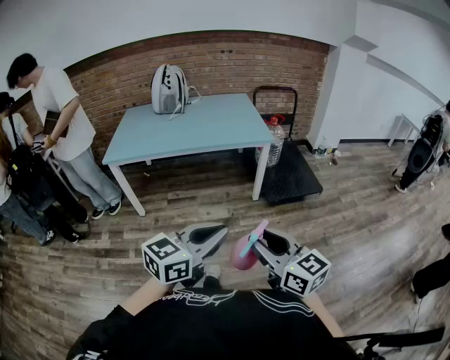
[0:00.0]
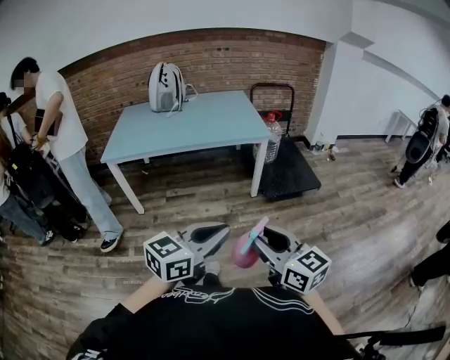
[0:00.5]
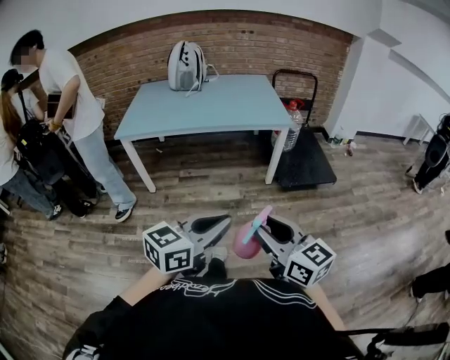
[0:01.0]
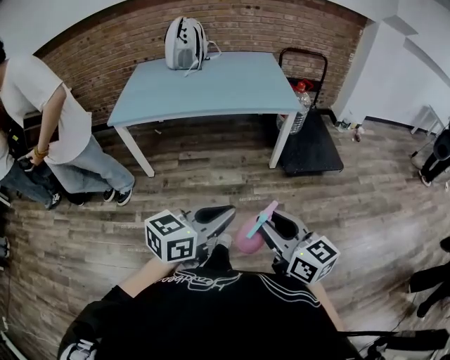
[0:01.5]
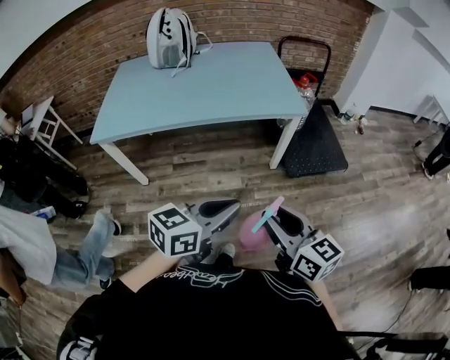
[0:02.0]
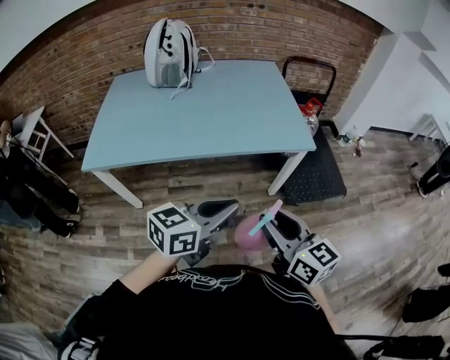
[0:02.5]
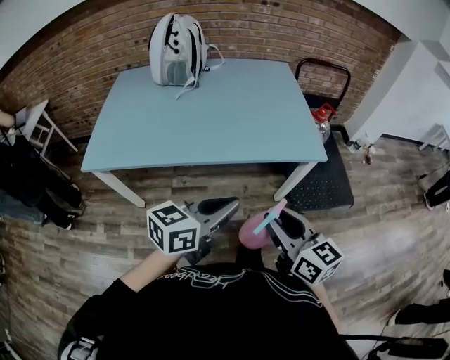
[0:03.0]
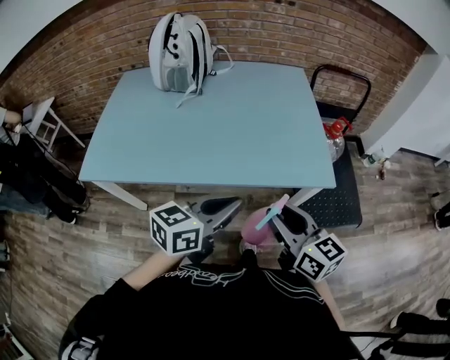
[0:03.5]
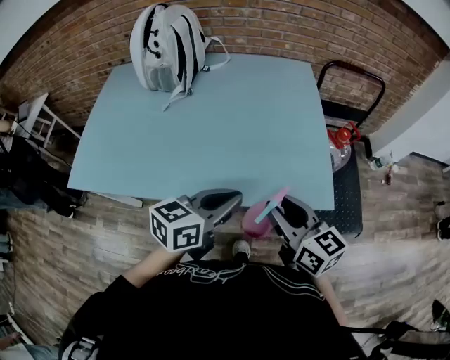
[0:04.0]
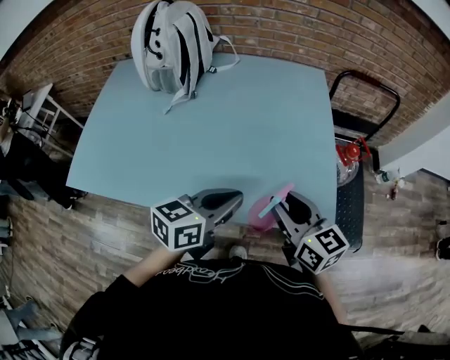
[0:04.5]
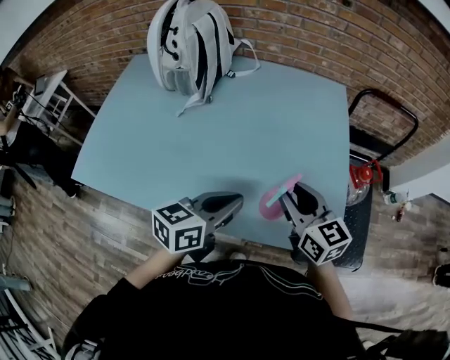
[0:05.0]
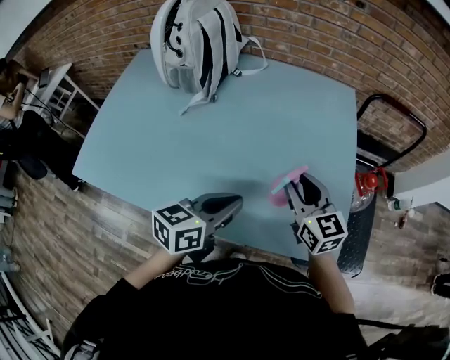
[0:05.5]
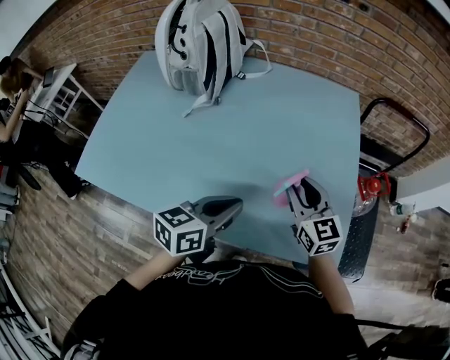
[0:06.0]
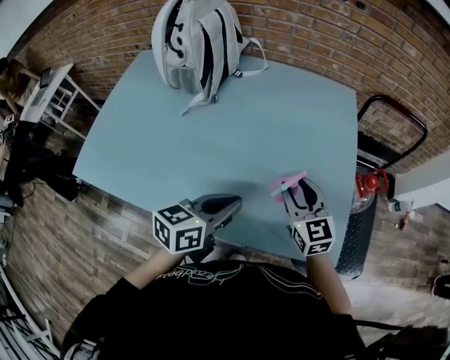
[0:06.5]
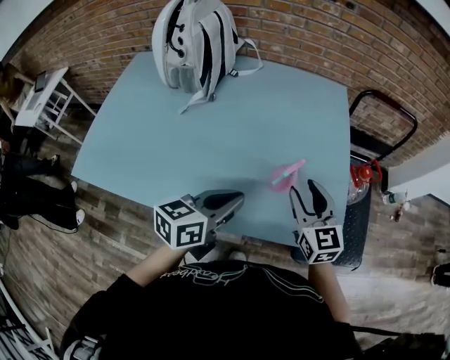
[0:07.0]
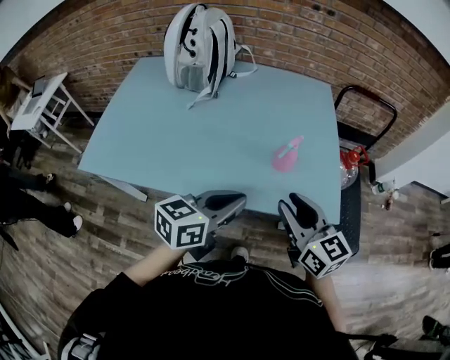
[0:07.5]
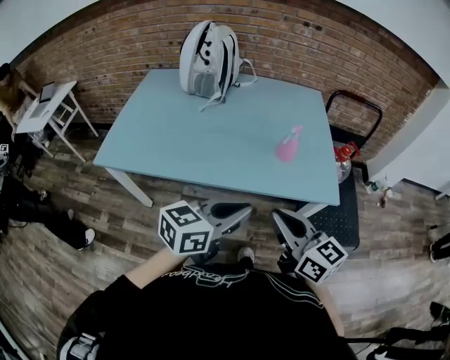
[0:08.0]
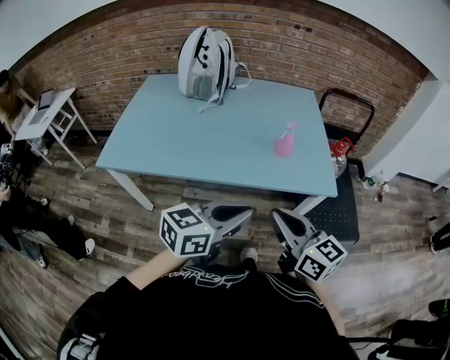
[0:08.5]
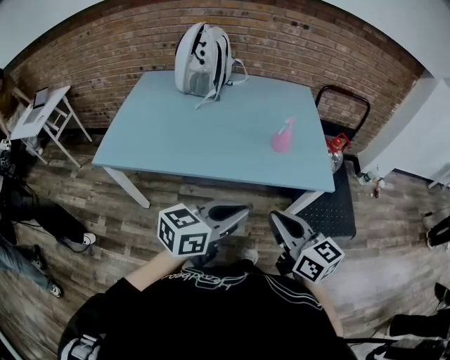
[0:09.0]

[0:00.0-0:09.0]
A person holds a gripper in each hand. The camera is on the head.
0:00.0 to 0:02.0: The grippers both shift forward by some 25 cm.
0:02.0 to 0:04.5: Both grippers are carried forward, about 60 cm.
0:04.5 to 0:07.0: The left gripper changes place by some 5 cm; the right gripper is displaced forward by about 10 cm, and swivels approximately 20 degrees.
0:07.0 to 0:09.0: The grippers both shift backward by some 40 cm. The right gripper rotates about 20 degrees, and closes up.

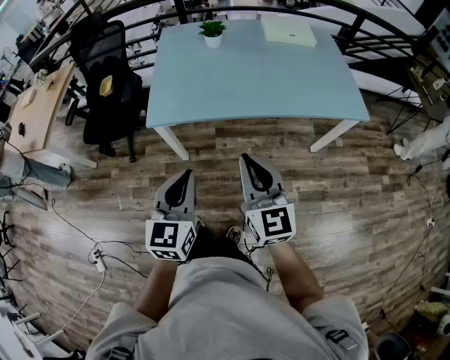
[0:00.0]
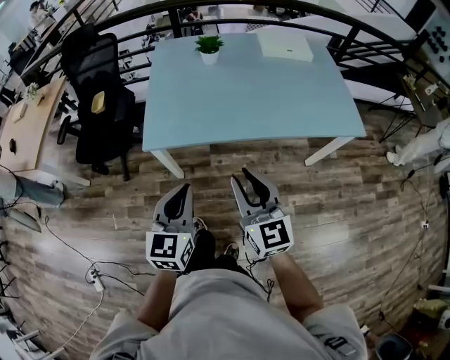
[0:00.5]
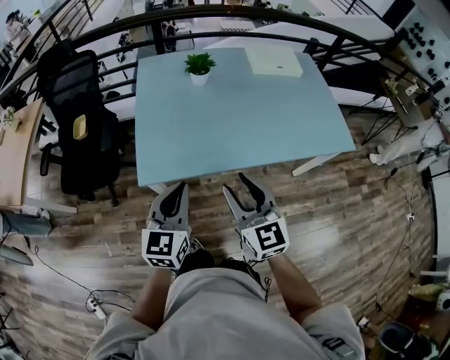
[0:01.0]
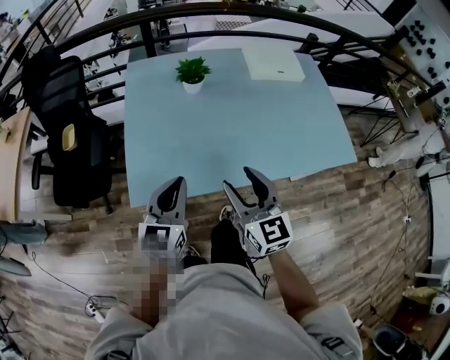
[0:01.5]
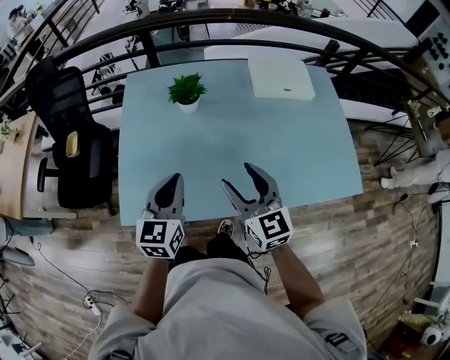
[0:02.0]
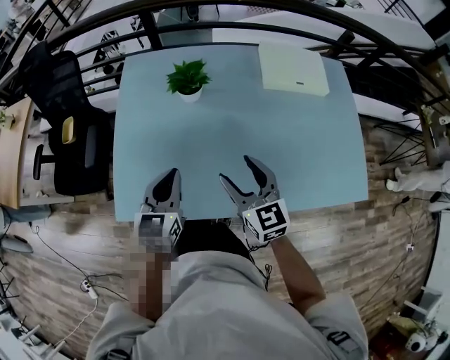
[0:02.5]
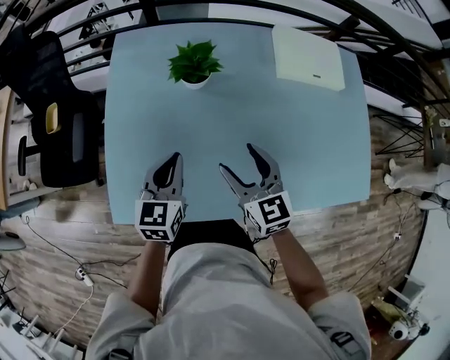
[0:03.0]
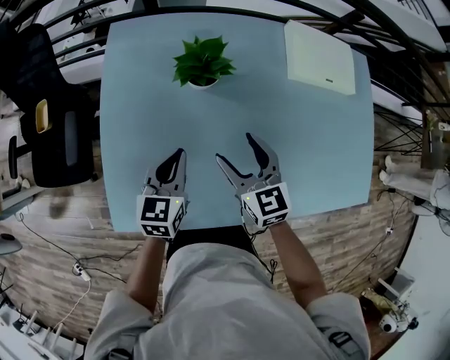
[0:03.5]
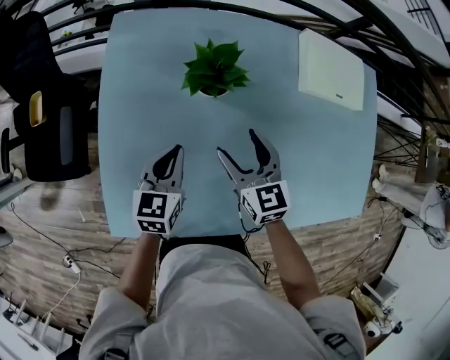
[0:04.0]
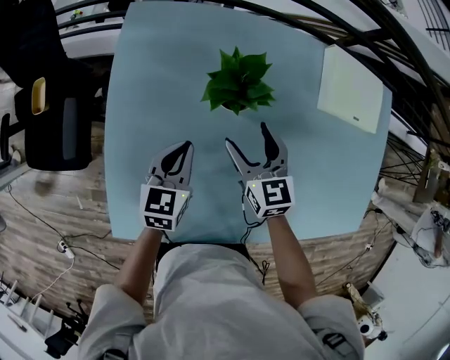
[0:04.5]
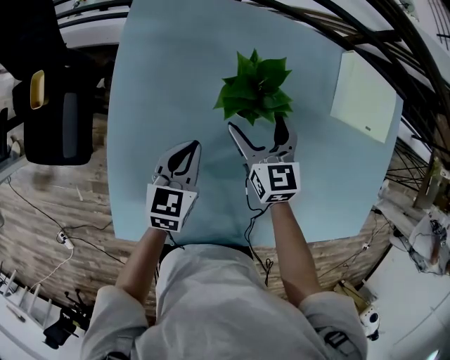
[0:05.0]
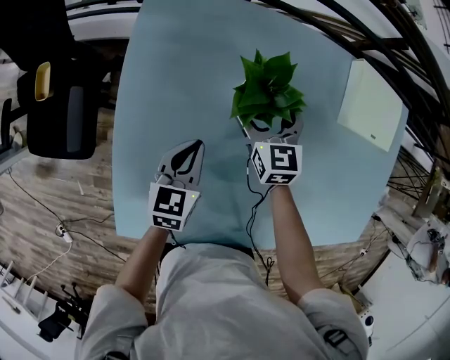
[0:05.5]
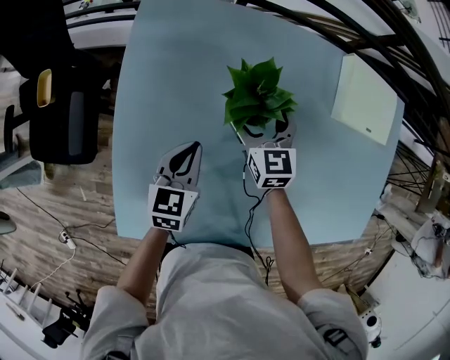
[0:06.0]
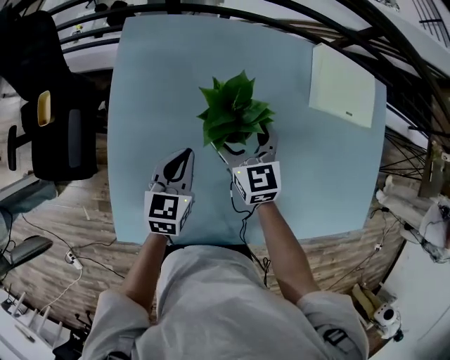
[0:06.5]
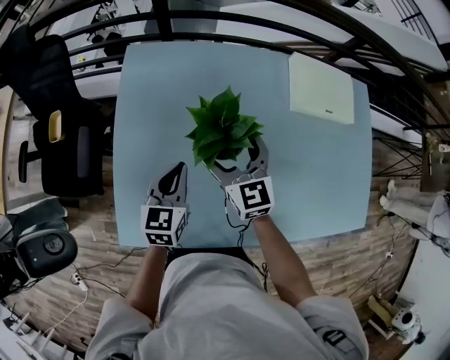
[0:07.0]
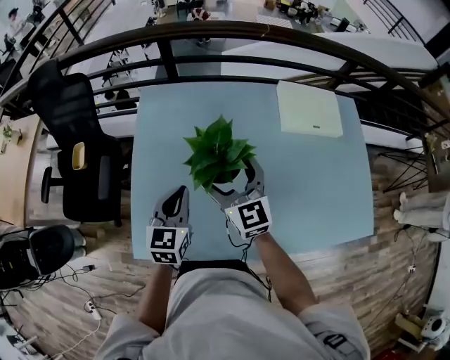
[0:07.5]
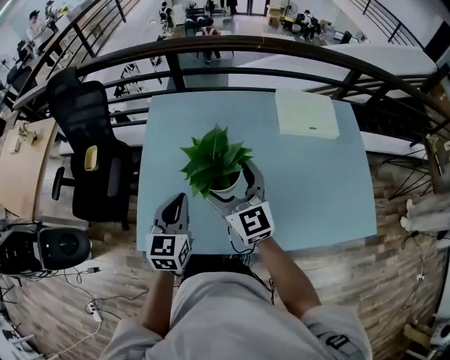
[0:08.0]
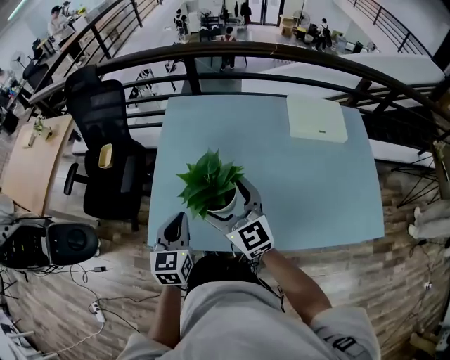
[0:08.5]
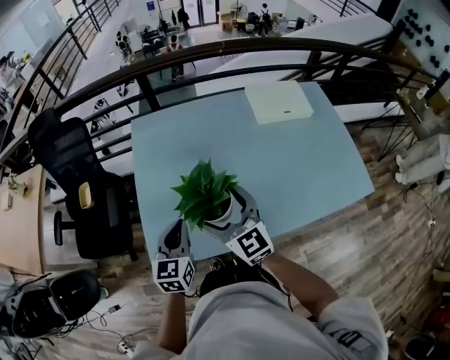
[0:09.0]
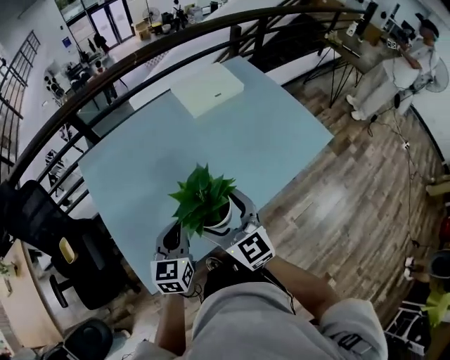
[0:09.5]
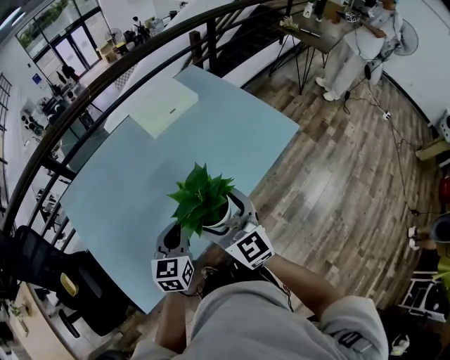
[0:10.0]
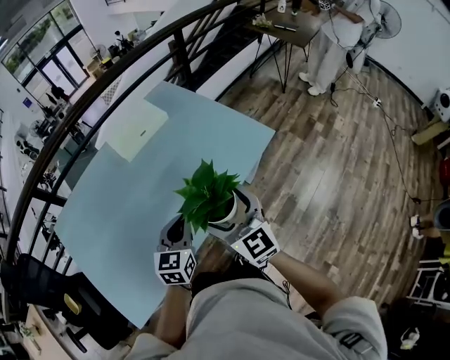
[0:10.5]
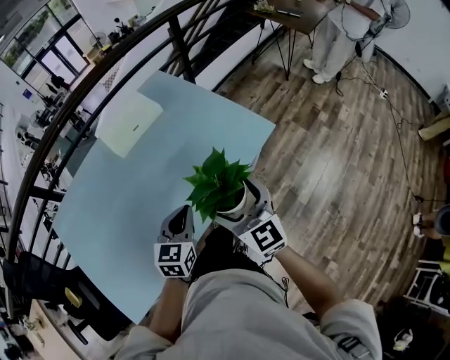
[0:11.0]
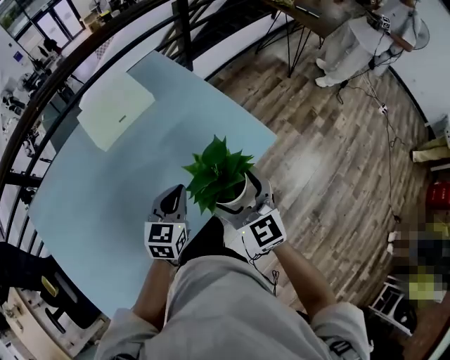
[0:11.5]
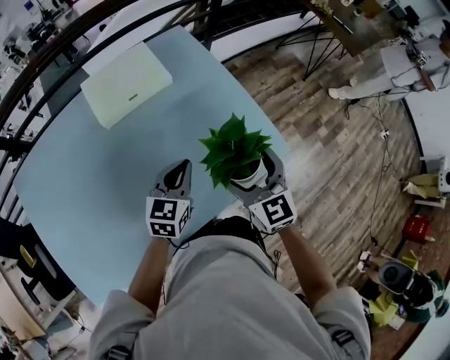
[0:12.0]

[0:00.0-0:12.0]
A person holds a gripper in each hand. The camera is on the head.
0:00.0 to 0:02.0: The grippers both shift forward by approximately 40 cm. The right gripper opens up.
0:02.0 to 0:04.0: Both grippers move forward and downward, roughly 25 cm.
0:04.0 to 0:06.0: The right gripper travels forward and downward by approximately 15 cm. Meanwhile the left gripper ends up about 5 cm from where it was.
0:06.0 to 0:08.0: The two grippers go about 30 cm upward and backward. The left gripper turns by roughly 20 degrees. The right gripper swivels roughly 30 degrees.
0:08.0 to 0:10.0: The right gripper shifts by approximately 25 cm, and changes its angle by about 40 degrees. Meanwhile the left gripper moves some 20 cm, and turns by approximately 40 degrees.
0:10.0 to 0:12.0: Both grippers travel together forward and to the right, some 35 cm.

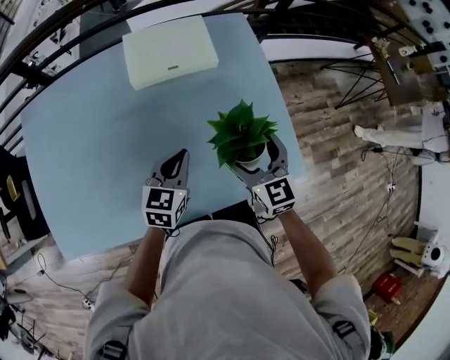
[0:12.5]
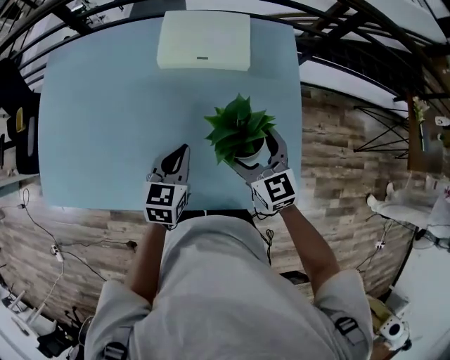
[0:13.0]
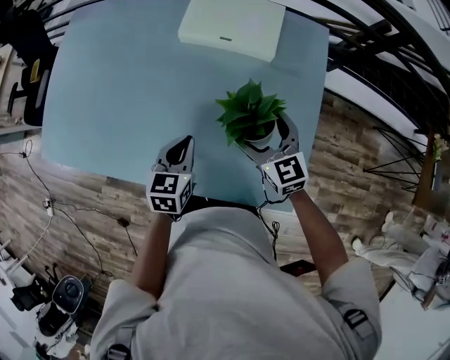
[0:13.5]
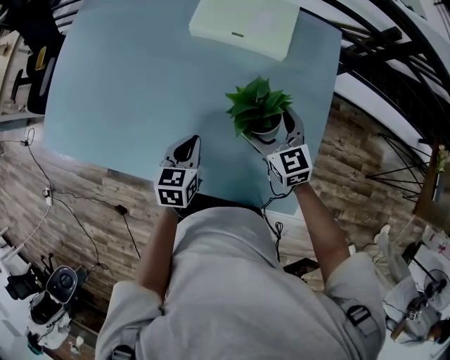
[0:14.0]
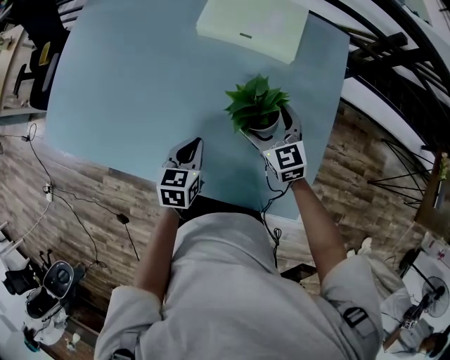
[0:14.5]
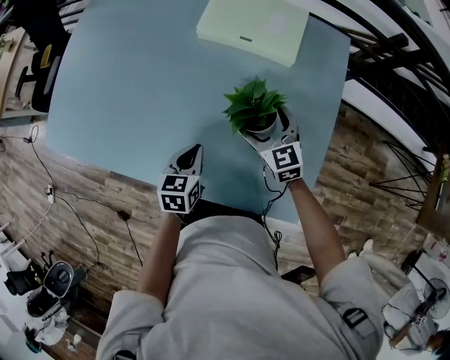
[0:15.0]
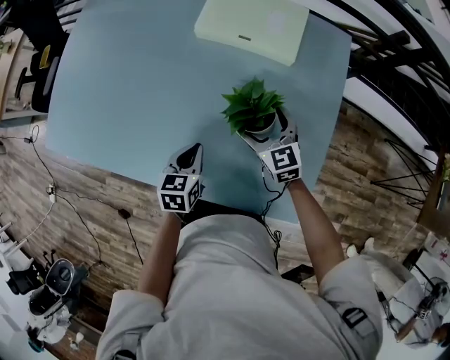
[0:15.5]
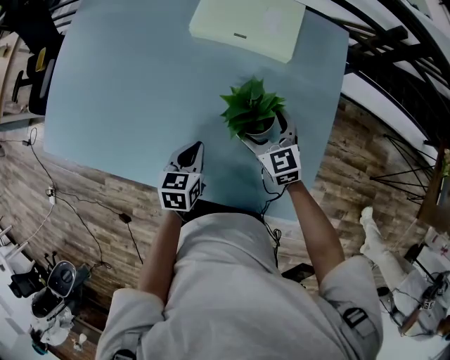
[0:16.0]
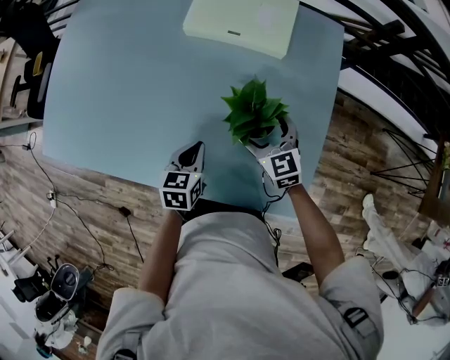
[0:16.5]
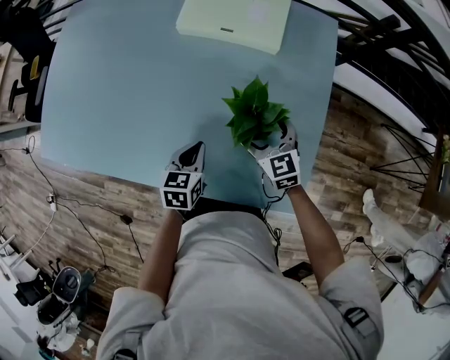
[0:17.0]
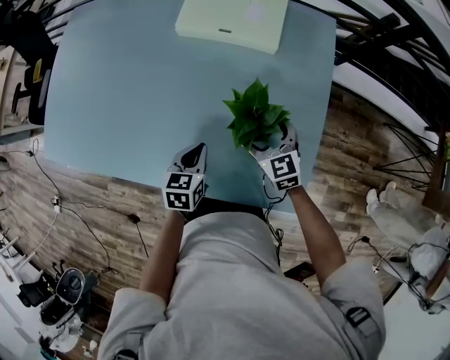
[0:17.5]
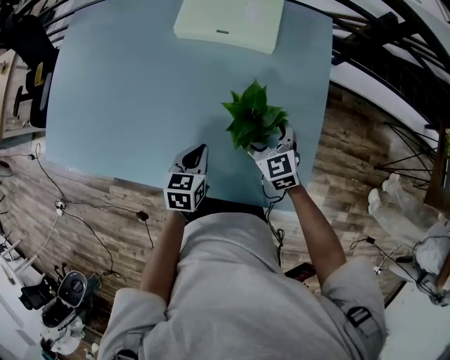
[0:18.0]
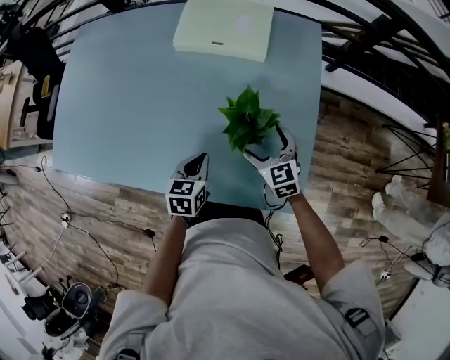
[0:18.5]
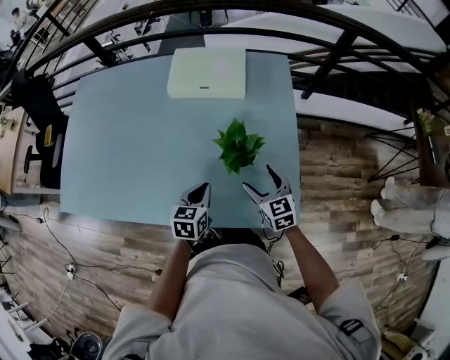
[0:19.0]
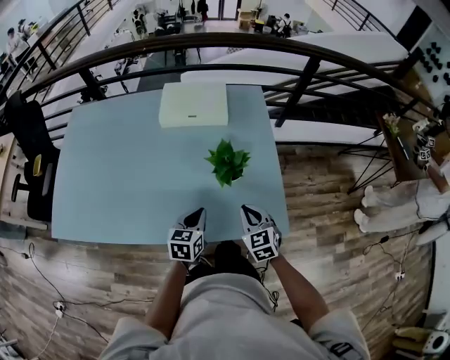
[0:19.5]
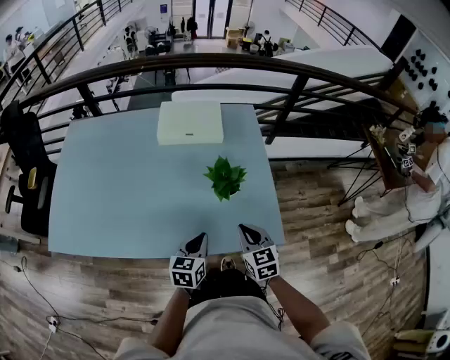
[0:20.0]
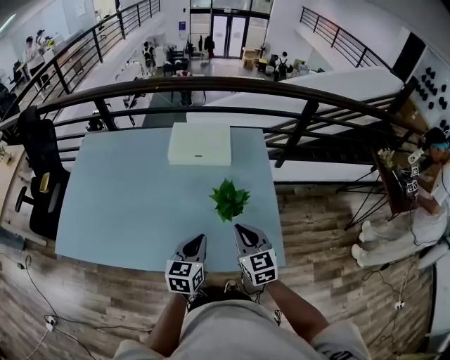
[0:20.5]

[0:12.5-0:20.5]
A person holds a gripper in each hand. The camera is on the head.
0:12.5 to 0:14.5: Both grippers move downward, some 10 cm. The right gripper changes its angle by some 40 degrees. The left gripper turns by some 40 degrees.
0:14.5 to 0:16.5: The grippers move only a little.
0:16.5 to 0:18.5: The right gripper travels backward by about 5 cm.
0:18.5 to 0:20.5: The right gripper heads upward and backward, covering about 20 cm, and closes its fingers, while the left gripper travels upward by about 15 cm, and turns by about 20 degrees.
